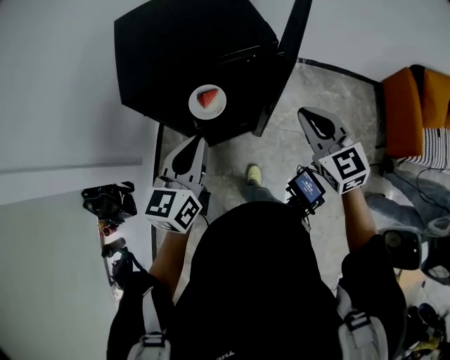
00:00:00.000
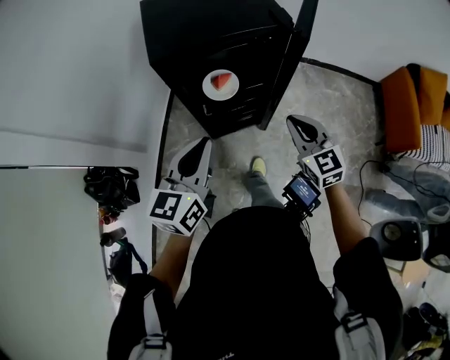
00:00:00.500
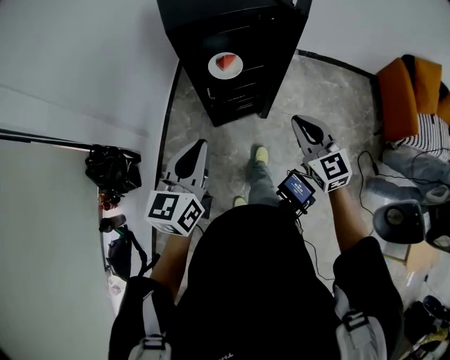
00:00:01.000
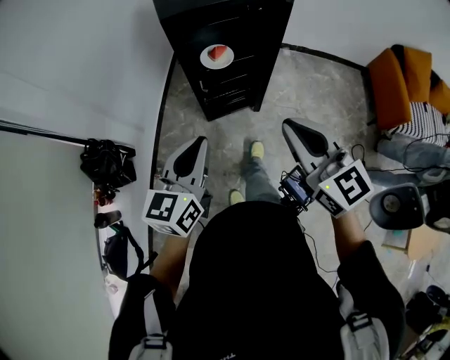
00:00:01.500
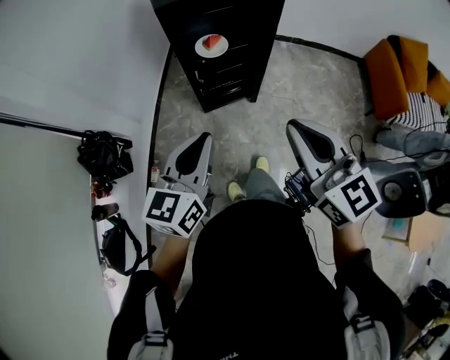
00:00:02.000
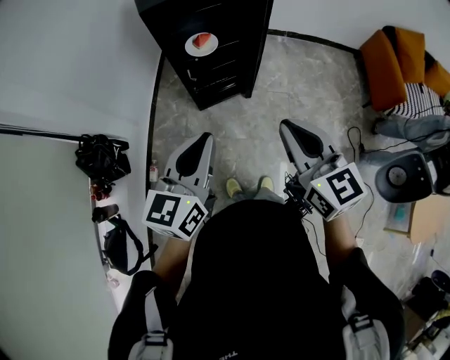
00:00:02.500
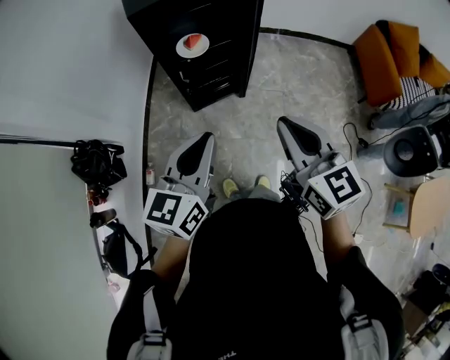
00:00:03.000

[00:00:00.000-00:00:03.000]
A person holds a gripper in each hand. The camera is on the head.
00:00:00.000 to 00:00:01.500: The right gripper moves backward and to the left, some 35 cm. Meanwhile the left gripper moves backward, some 25 cm.
00:00:01.500 to 00:00:03.000: Both grippers move to the right, about 5 cm.

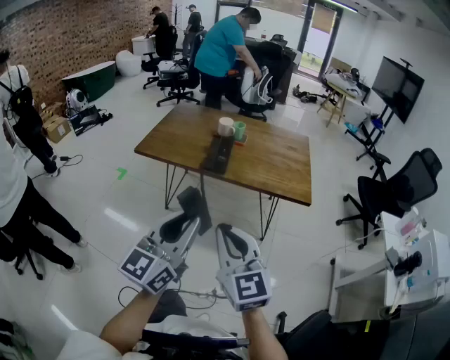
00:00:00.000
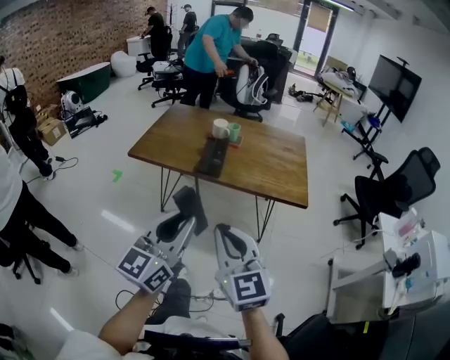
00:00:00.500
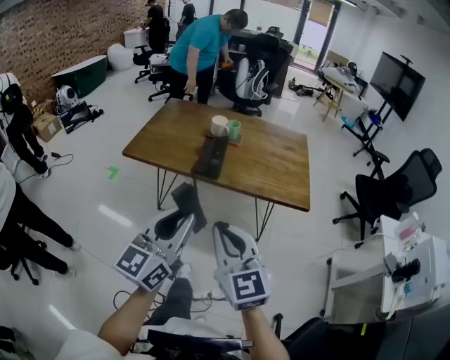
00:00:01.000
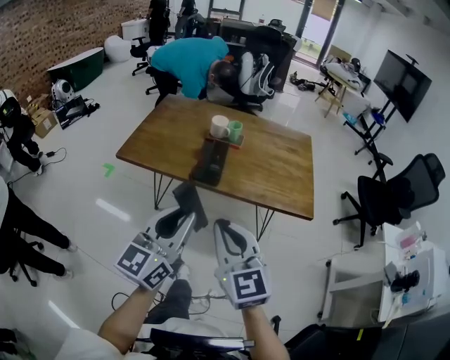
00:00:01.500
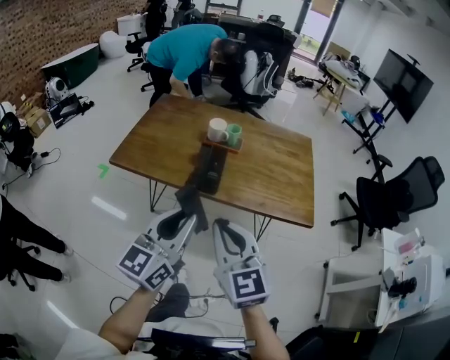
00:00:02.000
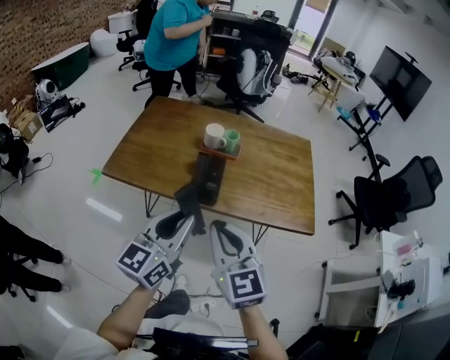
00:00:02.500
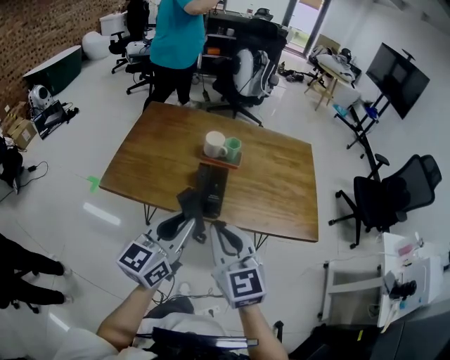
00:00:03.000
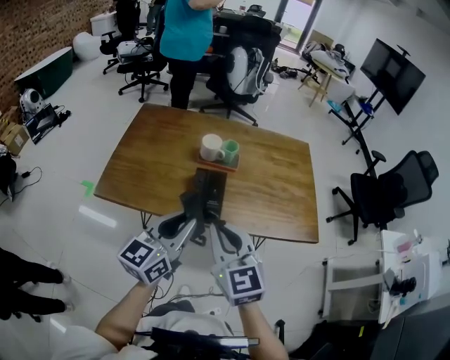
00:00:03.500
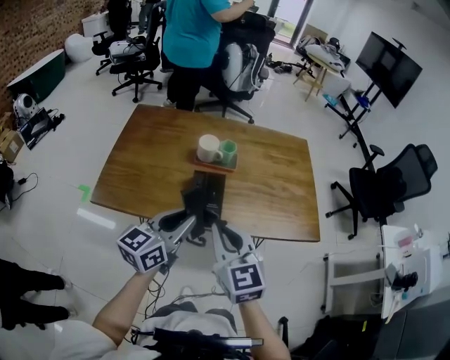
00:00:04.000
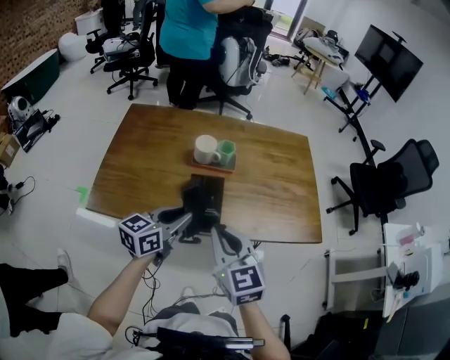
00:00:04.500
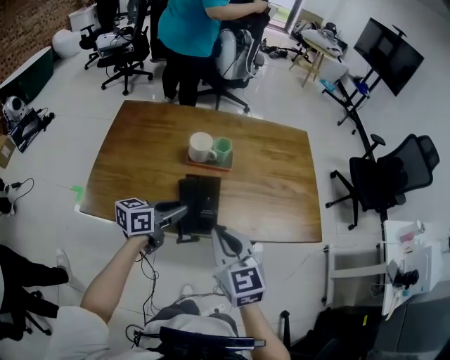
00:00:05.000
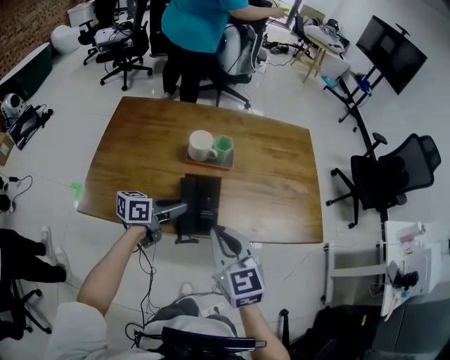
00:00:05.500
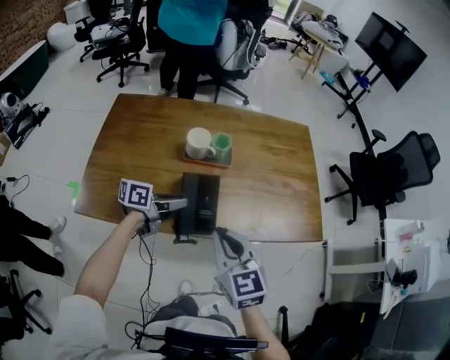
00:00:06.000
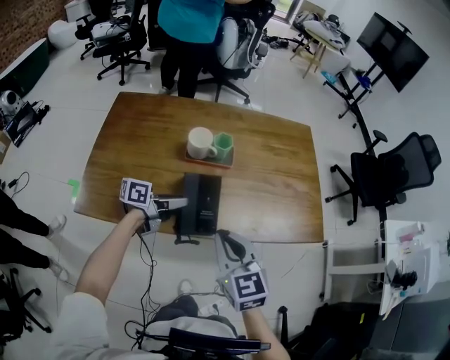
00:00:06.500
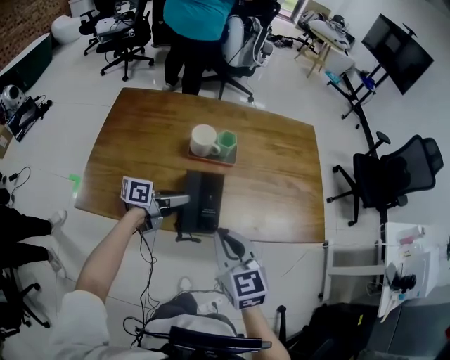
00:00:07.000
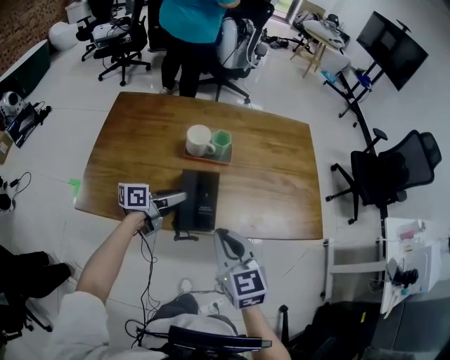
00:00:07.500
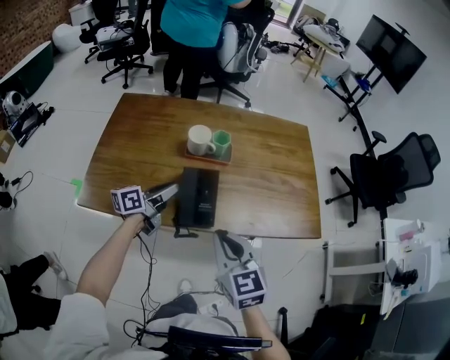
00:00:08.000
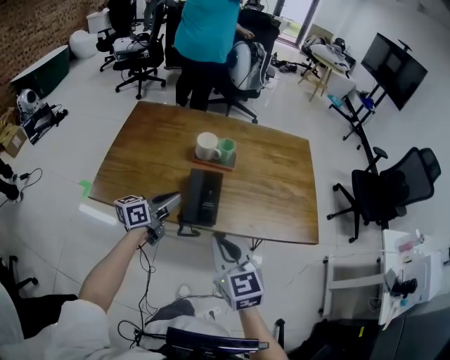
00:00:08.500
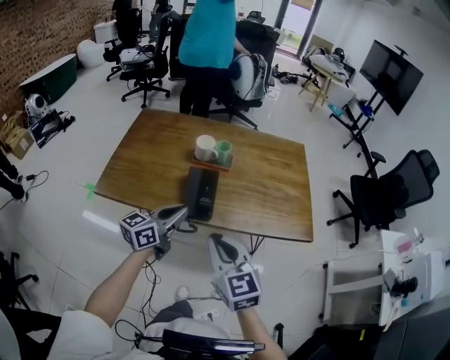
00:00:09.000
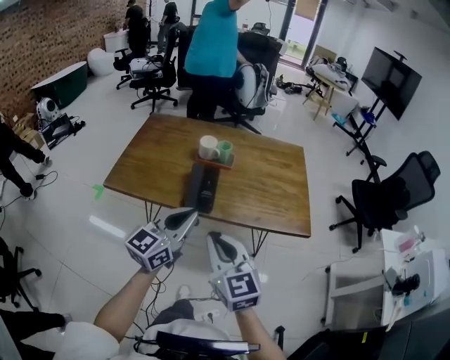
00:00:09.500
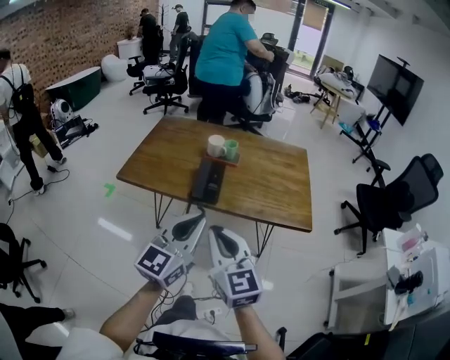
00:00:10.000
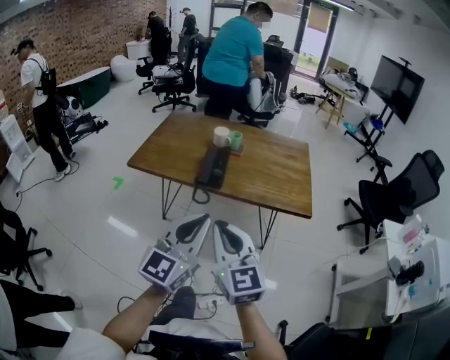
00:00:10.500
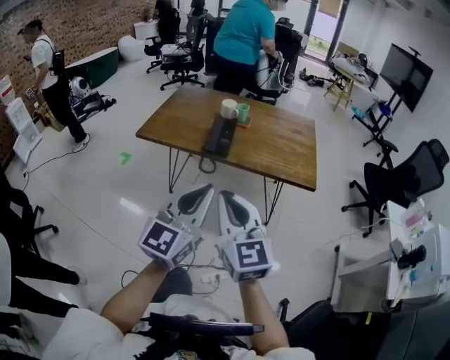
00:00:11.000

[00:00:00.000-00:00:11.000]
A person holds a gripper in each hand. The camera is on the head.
00:00:00.000 to 00:00:02.000: The two grippers go some 20 cm forward.
00:00:02.000 to 00:00:03.500: The two grippers go some 15 cm forward.
00:00:03.500 to 00:00:05.500: The left gripper moves downward and forward, about 25 cm, and rotates some 40 degrees. Meanwhile the right gripper shifts roughly 10 cm forward and downward.
00:00:05.500 to 00:00:07.500: The grippers stay close to where they were, moving slightly.
00:00:07.500 to 00:00:09.000: The right gripper goes roughly 10 cm backward and upward. Meanwhile the left gripper moves backward and upward, roughly 20 cm, rotates roughly 30 degrees, and closes its fingers.
00:00:09.000 to 00:00:11.000: The left gripper shifts roughly 40 cm backward and upward, and swivels some 40 degrees. The right gripper heads backward, covering approximately 25 cm.

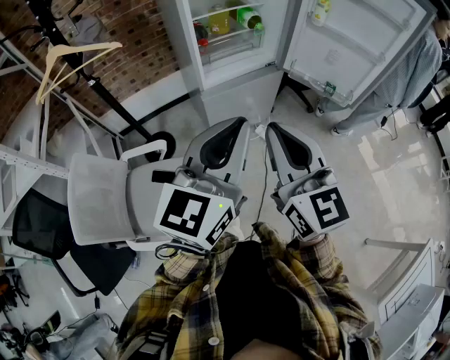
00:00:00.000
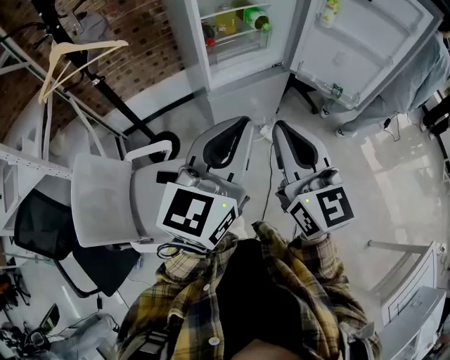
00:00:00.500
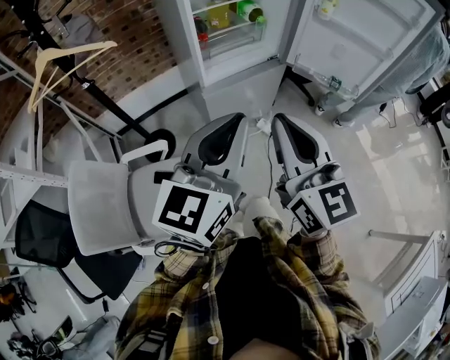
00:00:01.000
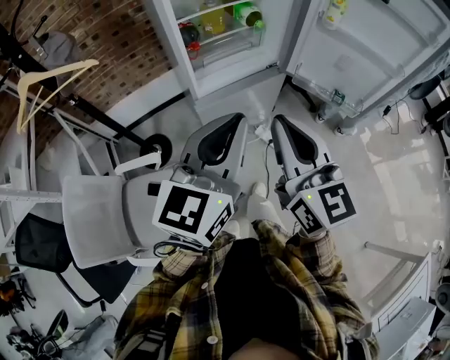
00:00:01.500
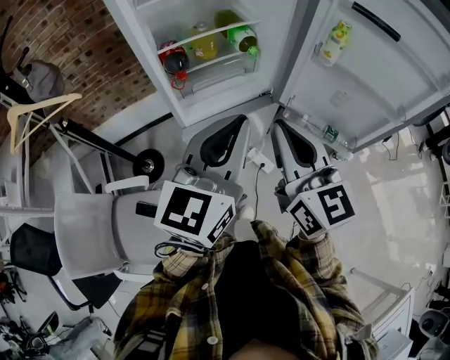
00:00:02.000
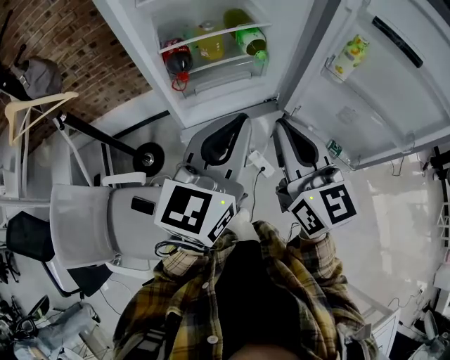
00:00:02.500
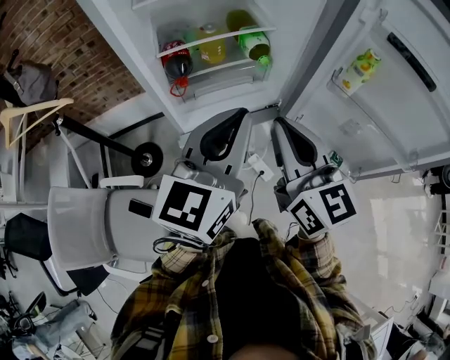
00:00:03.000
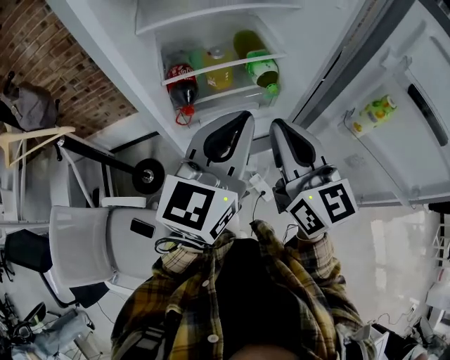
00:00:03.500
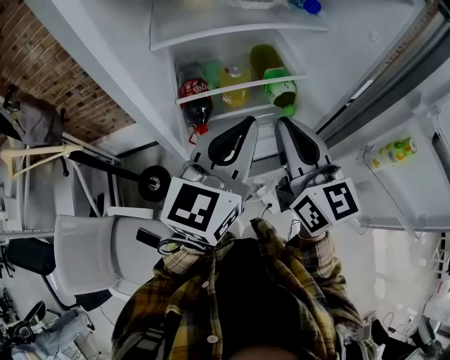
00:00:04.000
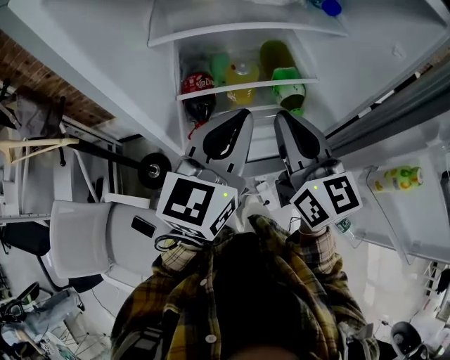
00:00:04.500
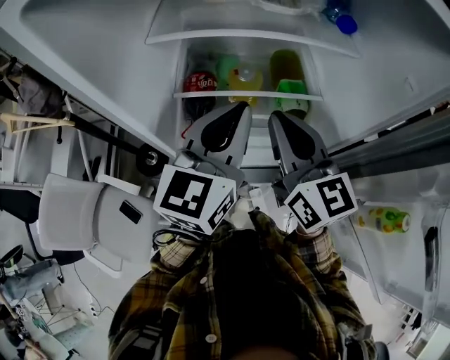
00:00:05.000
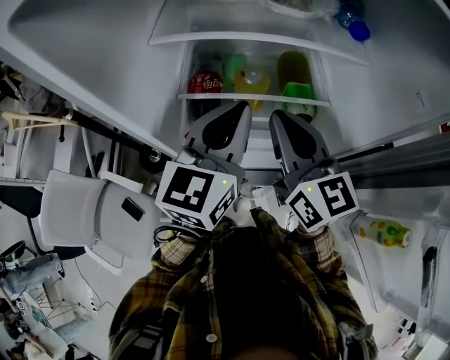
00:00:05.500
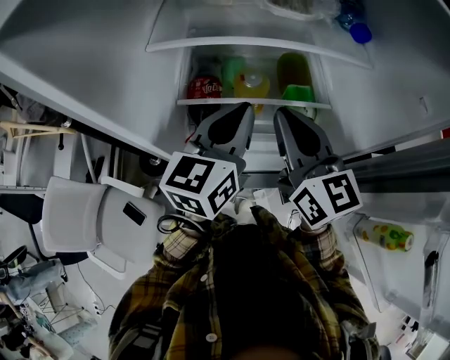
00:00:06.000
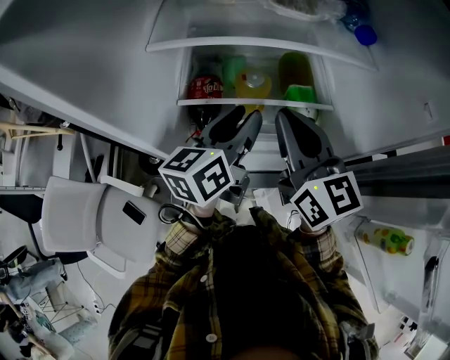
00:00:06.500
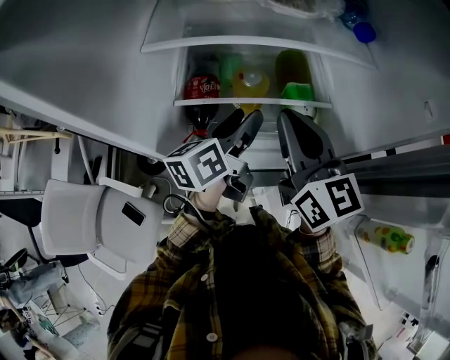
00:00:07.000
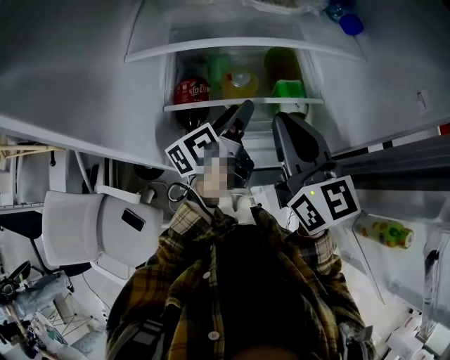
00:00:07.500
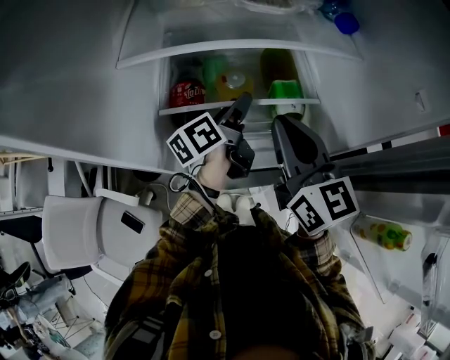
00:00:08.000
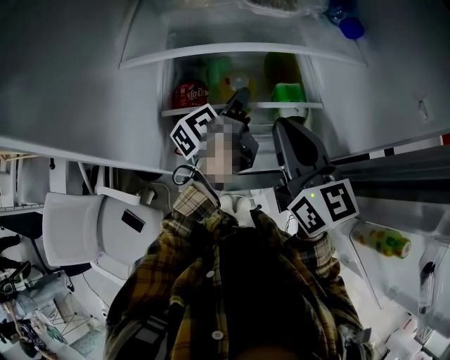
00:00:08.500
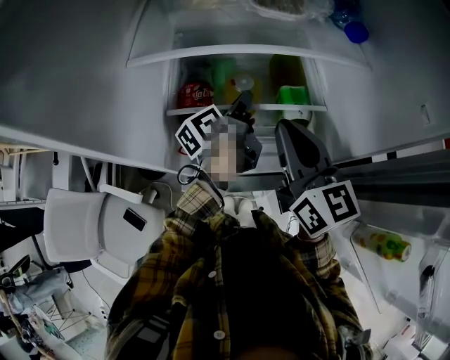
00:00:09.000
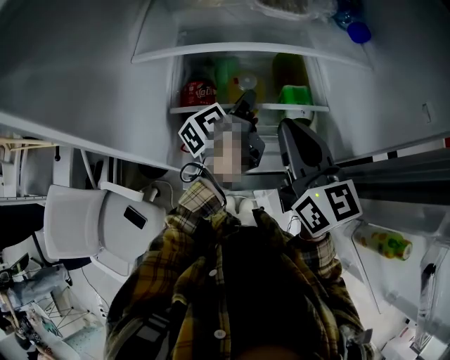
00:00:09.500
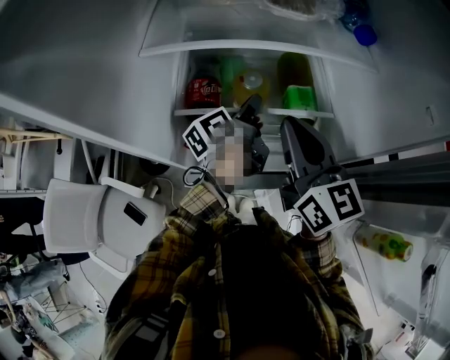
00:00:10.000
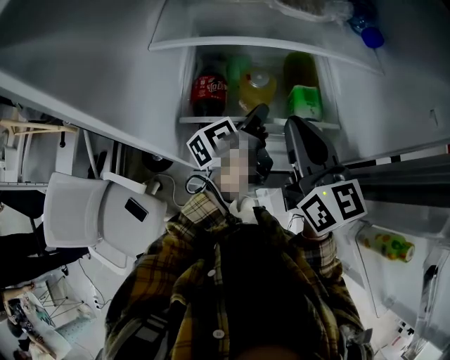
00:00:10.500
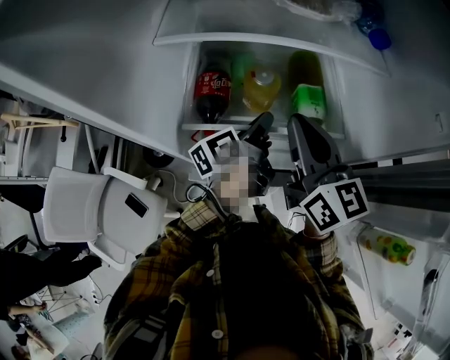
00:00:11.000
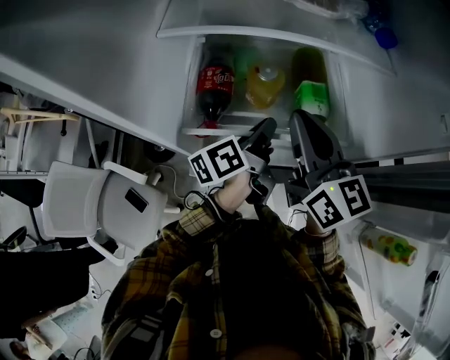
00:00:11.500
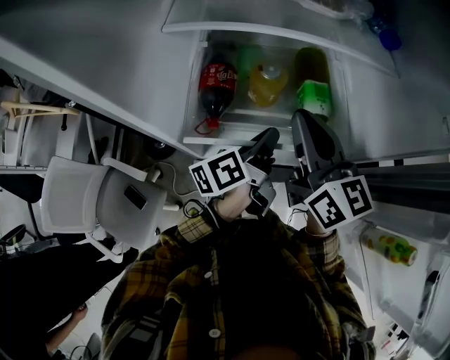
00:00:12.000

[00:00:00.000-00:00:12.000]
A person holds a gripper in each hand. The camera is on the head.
00:00:00.000 to 00:00:02.000: Both grippers move forward, approximately 25 cm.
00:00:02.000 to 00:00:04.000: Both grippers move forward, roughly 25 cm.
00:00:04.000 to 00:00:06.000: The two grippers go roughly 10 cm forward.
00:00:06.000 to 00:00:08.000: The left gripper is displaced downward and forward by roughly 15 cm, twists roughly 50 degrees counterclockwise, seen from behind, and opens.
00:00:08.000 to 00:00:10.000: The left gripper closes its fingers.
00:00:10.000 to 00:00:12.000: The left gripper travels backward by roughly 10 cm.

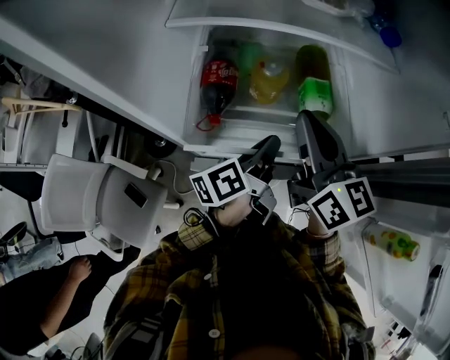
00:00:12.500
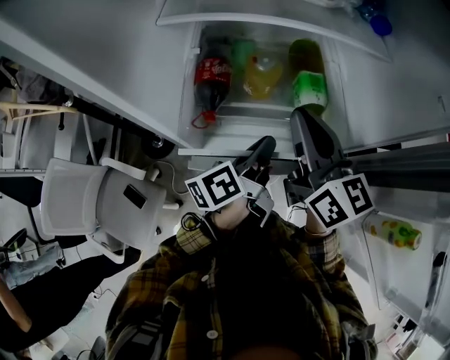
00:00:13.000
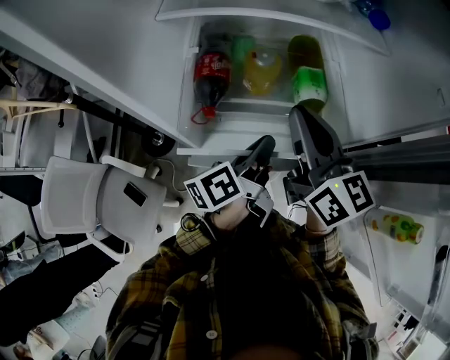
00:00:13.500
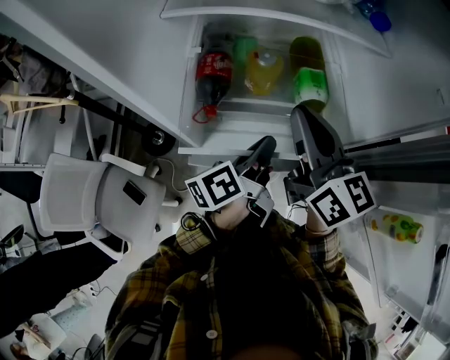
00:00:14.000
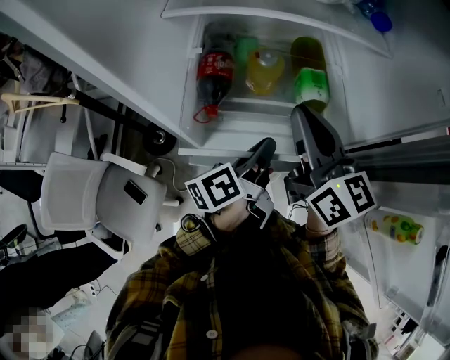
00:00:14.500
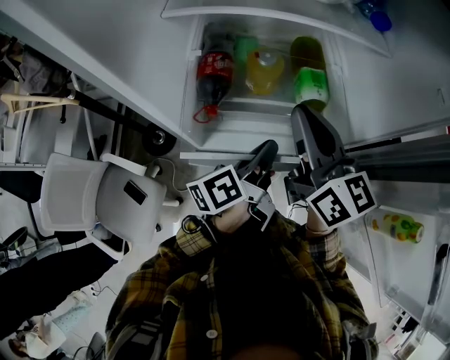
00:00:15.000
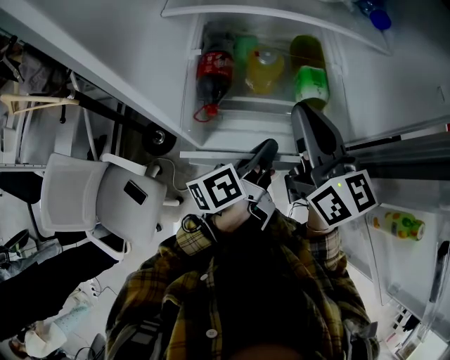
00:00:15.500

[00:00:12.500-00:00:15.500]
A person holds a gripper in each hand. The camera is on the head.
00:00:12.500 to 00:00:14.000: The grippers make only small movements.
00:00:14.000 to 00:00:15.500: Neither gripper changes place.
